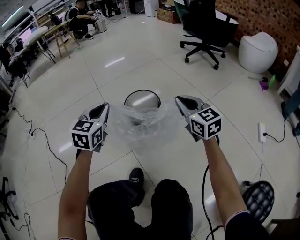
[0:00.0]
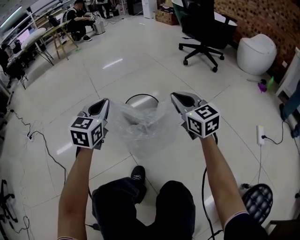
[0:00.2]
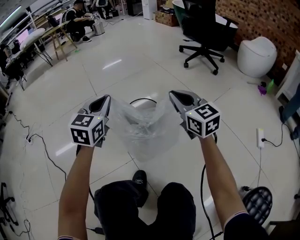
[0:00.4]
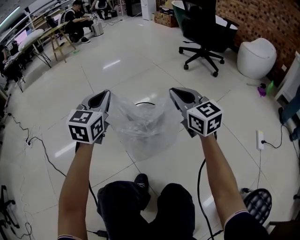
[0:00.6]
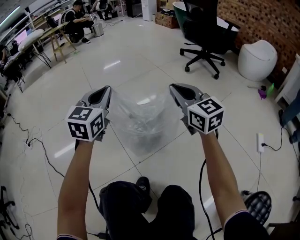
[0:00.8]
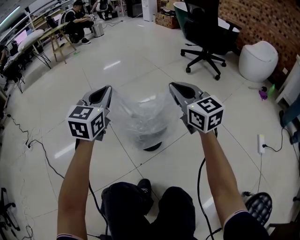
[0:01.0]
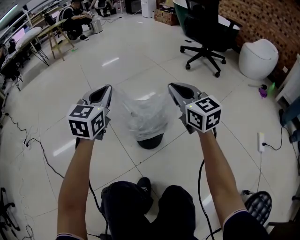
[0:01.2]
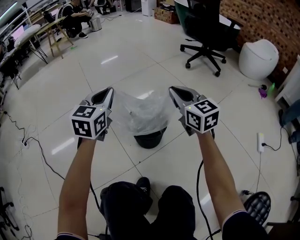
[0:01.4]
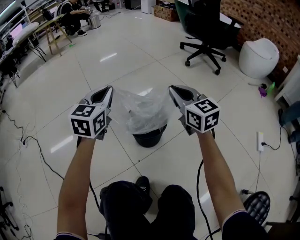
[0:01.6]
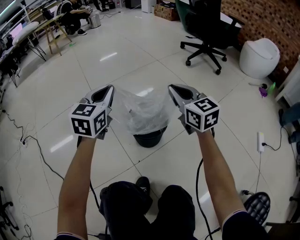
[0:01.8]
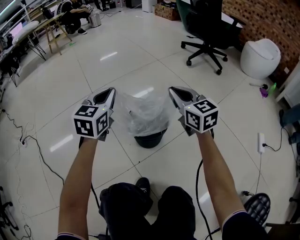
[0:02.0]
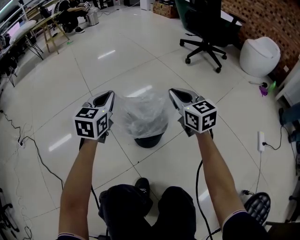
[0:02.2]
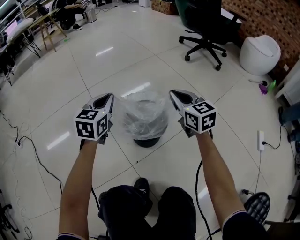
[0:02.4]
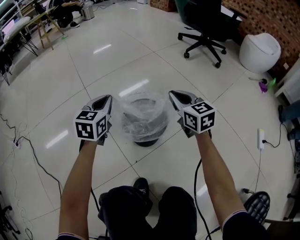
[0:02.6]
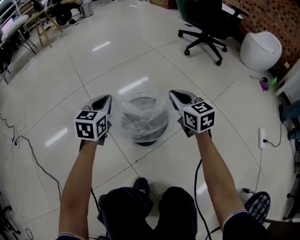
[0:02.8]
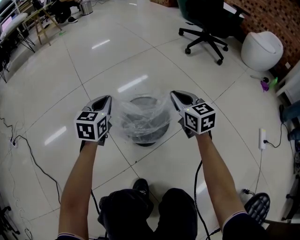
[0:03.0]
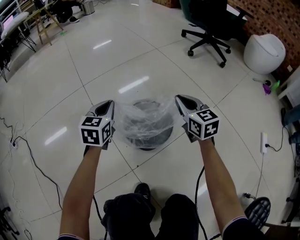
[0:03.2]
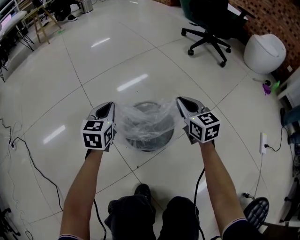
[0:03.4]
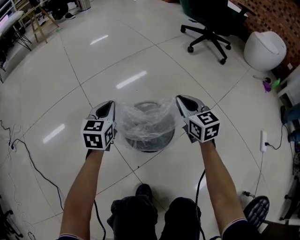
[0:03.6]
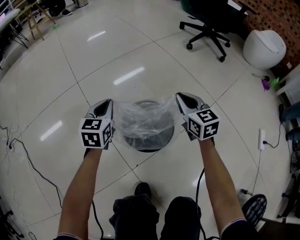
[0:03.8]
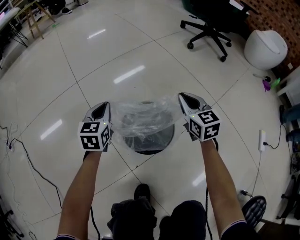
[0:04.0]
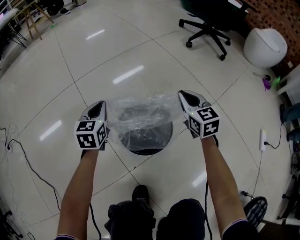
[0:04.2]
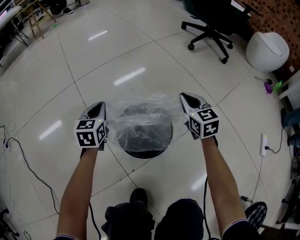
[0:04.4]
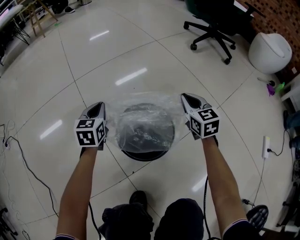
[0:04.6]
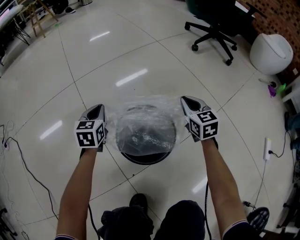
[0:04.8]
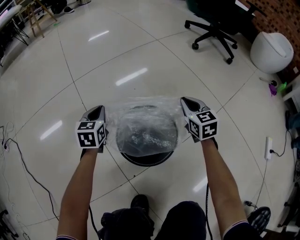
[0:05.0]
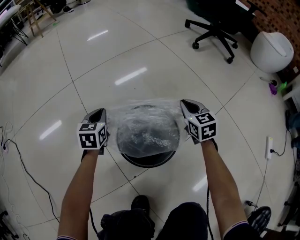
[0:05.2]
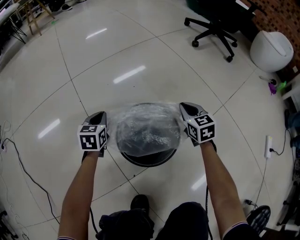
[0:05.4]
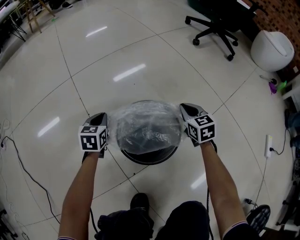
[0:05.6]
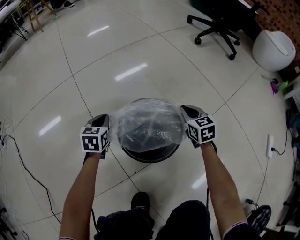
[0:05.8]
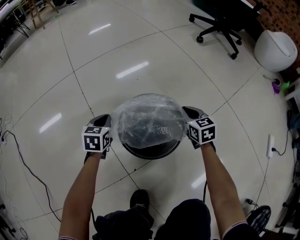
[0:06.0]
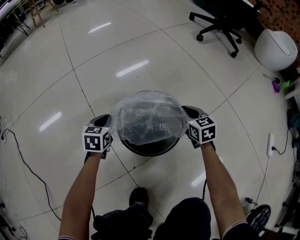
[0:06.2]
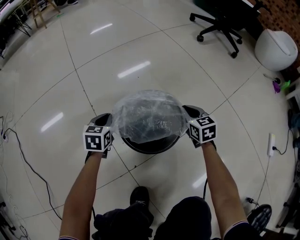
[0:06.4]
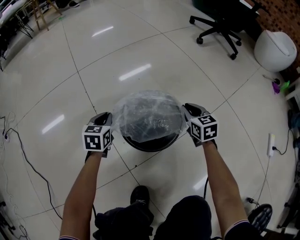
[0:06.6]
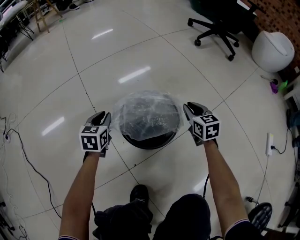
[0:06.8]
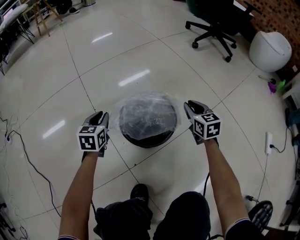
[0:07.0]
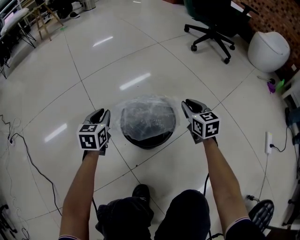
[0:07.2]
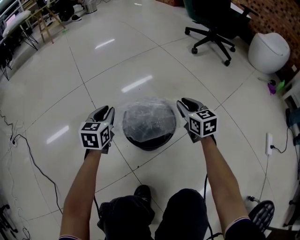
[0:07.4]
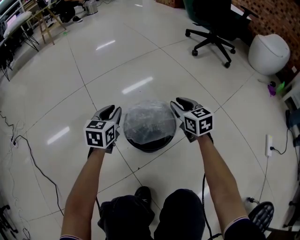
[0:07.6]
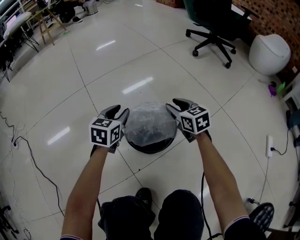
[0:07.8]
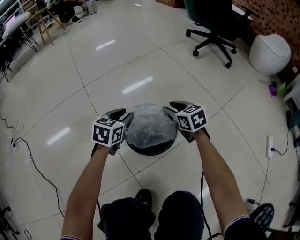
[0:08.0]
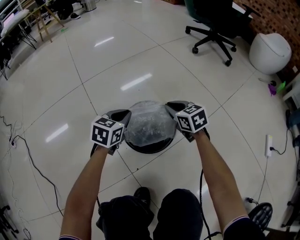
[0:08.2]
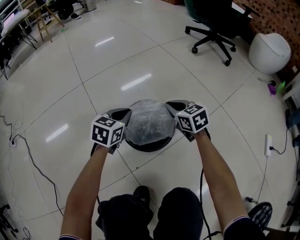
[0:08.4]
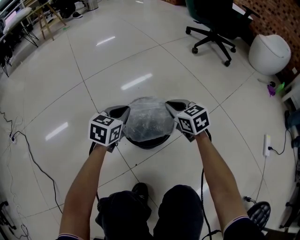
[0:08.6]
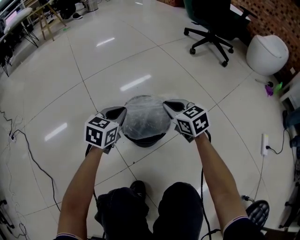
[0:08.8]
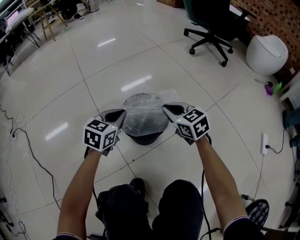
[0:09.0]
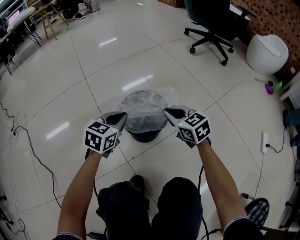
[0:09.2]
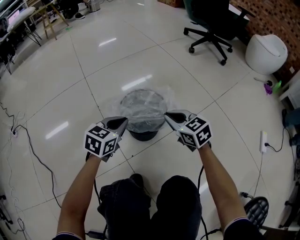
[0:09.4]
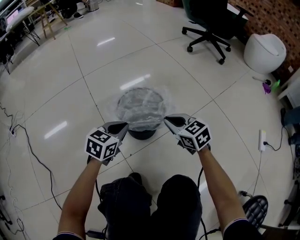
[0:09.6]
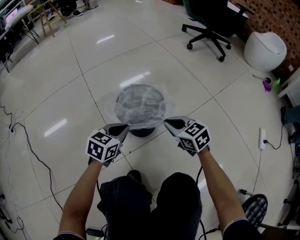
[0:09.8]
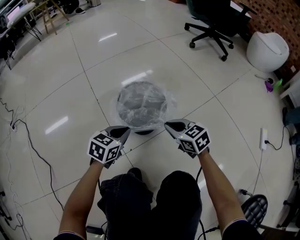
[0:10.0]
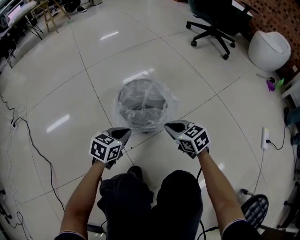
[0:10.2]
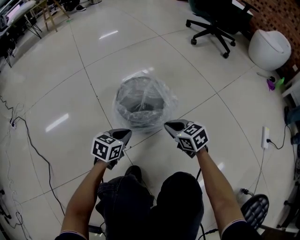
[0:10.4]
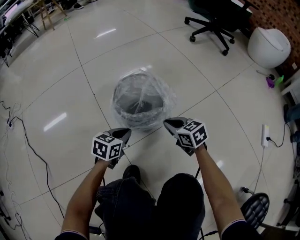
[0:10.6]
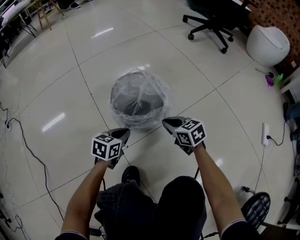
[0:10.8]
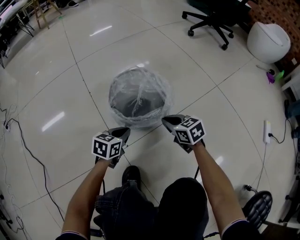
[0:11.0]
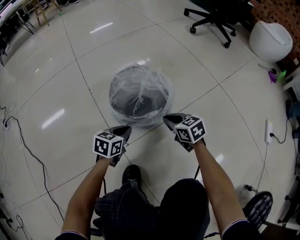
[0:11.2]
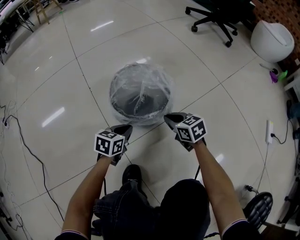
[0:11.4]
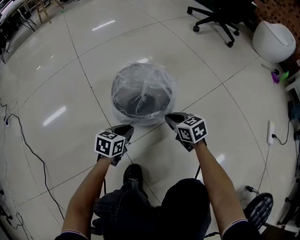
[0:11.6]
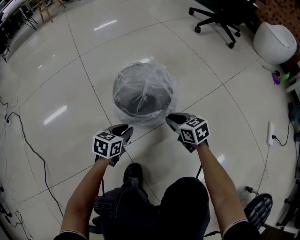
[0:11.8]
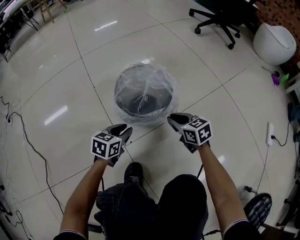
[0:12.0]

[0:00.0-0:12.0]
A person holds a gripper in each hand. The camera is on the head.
0:00.0 to 0:01.6: The right gripper is displaced forward and to the left by some 15 cm, while the left gripper is displaced forward by some 15 cm.
0:01.6 to 0:03.0: The left gripper is displaced downward by some 15 cm. The right gripper is displaced downward and forward by some 15 cm.
0:03.0 to 0:04.4: Both grippers move downward and forward, about 10 cm.
0:04.4 to 0:06.0: Both grippers move downward, about 15 cm.
0:06.0 to 0:07.6: The two grippers go some 15 cm upward. The left gripper opens. Meanwhile the right gripper opens its fingers.
0:07.6 to 0:09.0: The right gripper goes approximately 10 cm backward, and closes up. Meanwhile the left gripper heads backward and to the right, covering roughly 10 cm, and closes its fingers.
0:09.0 to 0:10.4: The left gripper heads downward and backward, covering approximately 15 cm. The right gripper shifts some 15 cm backward and downward.
0:10.4 to 0:12.0: Both grippers travel together downward, roughly 5 cm. The left gripper opens.

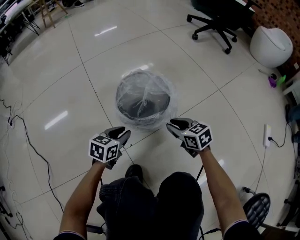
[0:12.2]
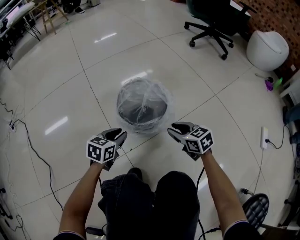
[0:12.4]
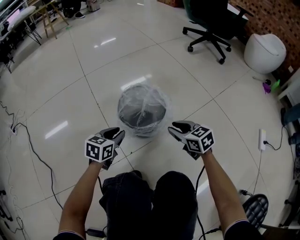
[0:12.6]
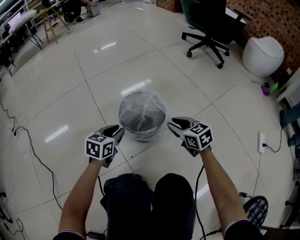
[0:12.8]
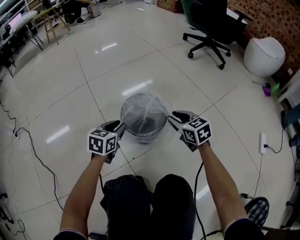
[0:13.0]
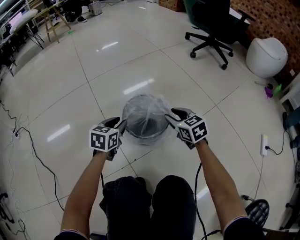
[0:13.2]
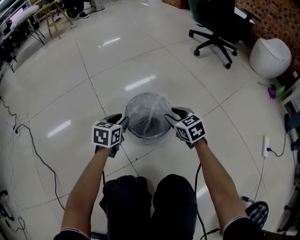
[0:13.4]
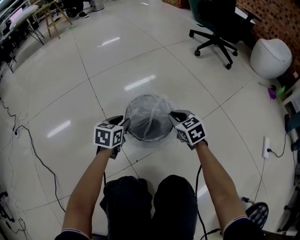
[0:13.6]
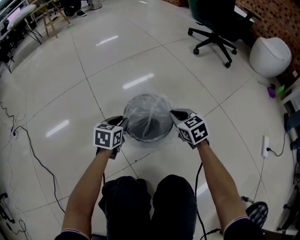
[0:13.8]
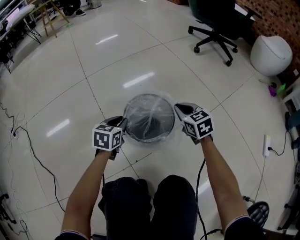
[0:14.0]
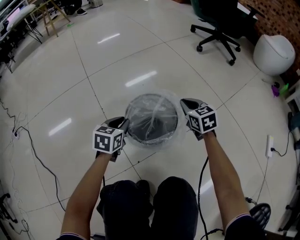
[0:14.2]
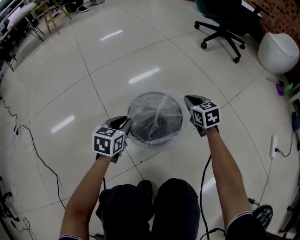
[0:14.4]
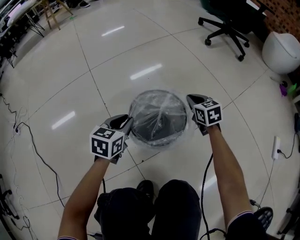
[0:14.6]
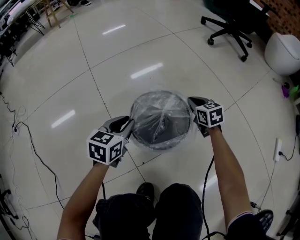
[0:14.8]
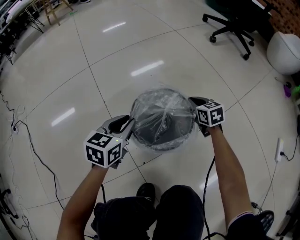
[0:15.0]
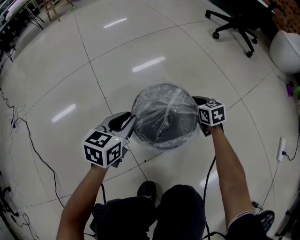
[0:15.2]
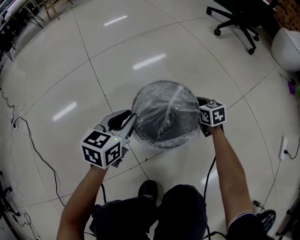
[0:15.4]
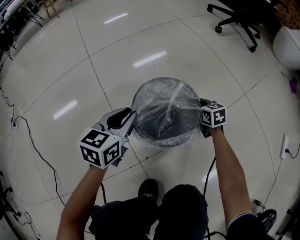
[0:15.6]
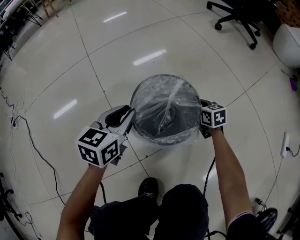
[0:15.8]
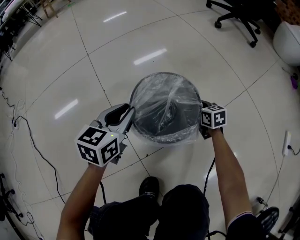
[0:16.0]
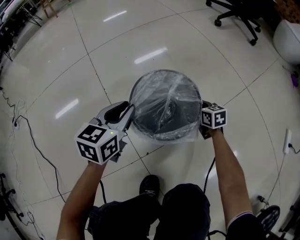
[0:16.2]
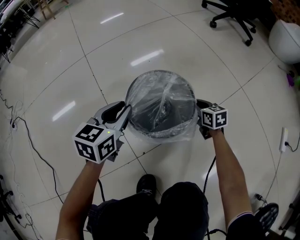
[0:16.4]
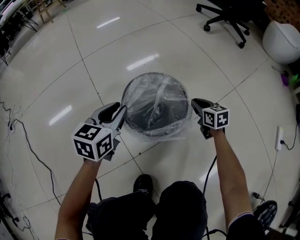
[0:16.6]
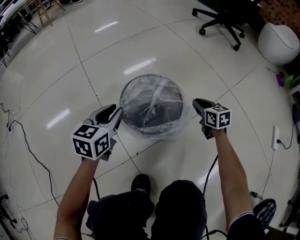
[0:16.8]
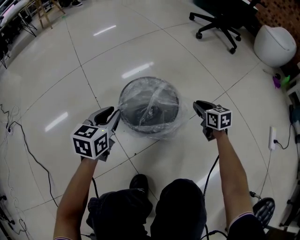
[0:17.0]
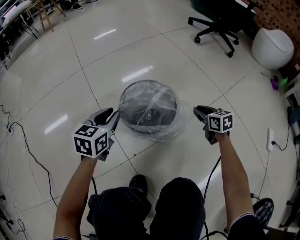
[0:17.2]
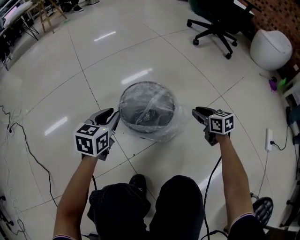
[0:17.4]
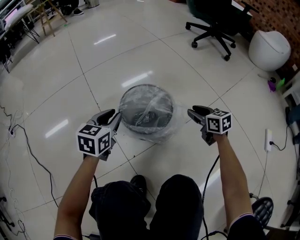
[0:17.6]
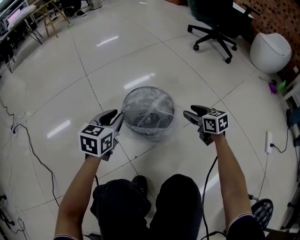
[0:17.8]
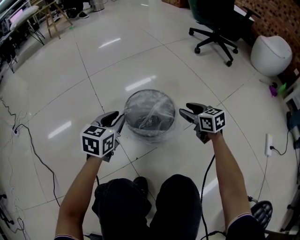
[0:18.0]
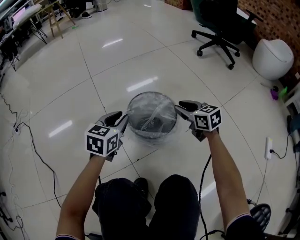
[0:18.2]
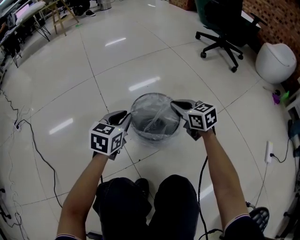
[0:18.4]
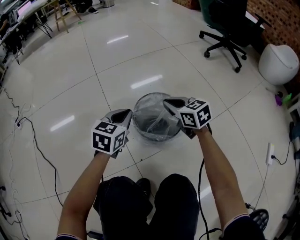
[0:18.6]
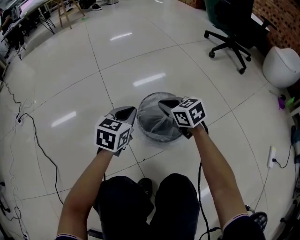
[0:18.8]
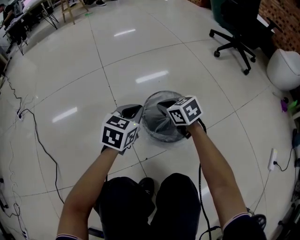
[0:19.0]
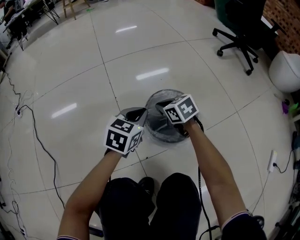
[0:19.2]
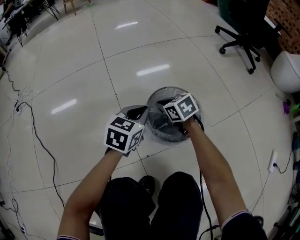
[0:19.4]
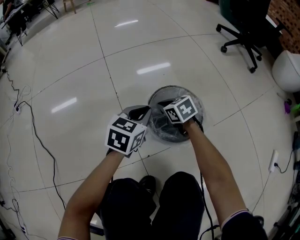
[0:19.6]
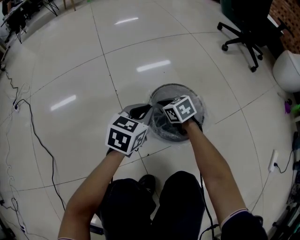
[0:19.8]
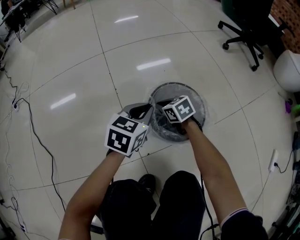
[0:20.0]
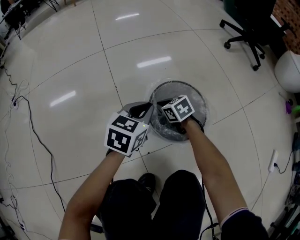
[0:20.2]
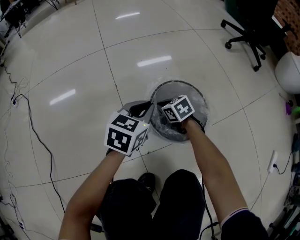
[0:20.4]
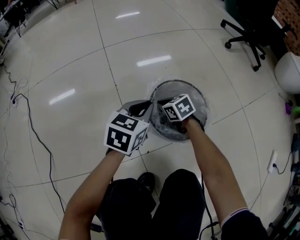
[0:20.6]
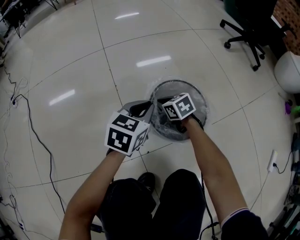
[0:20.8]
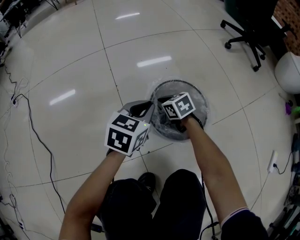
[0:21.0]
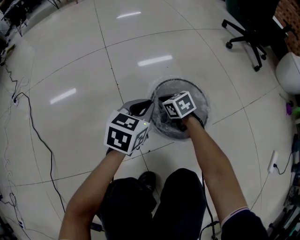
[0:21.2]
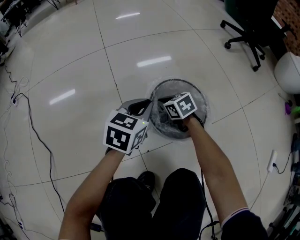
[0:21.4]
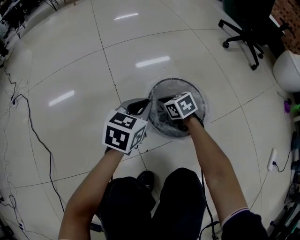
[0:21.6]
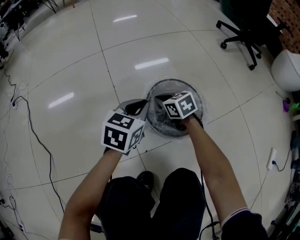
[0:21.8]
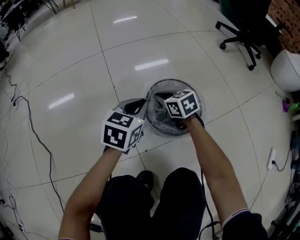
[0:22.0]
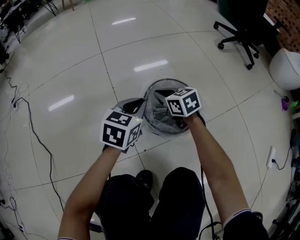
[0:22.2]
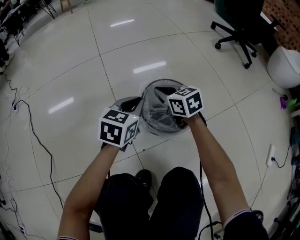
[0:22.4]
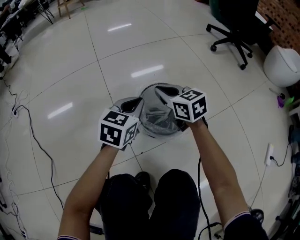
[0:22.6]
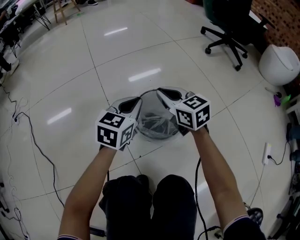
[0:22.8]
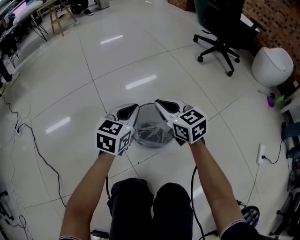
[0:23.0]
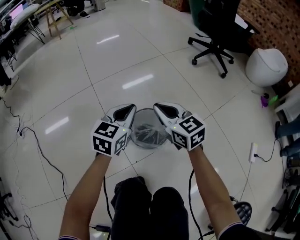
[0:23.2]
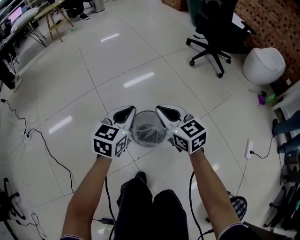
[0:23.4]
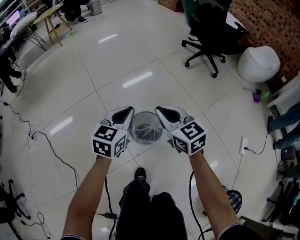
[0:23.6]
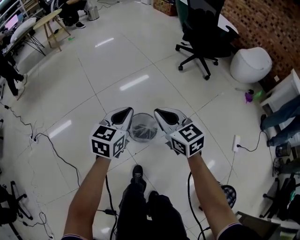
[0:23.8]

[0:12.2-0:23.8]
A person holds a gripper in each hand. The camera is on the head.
0:12.2 to 0:13.6: Both grippers move forward and upward, some 15 cm.
0:13.6 to 0:15.0: The right gripper is displaced forward and downward by about 15 cm.
0:15.0 to 0:16.6: The right gripper shifts approximately 5 cm backward.
0:16.6 to 0:18.0: The right gripper shifts roughly 15 cm upward, and opens up; the left gripper shifts by approximately 5 cm.
0:18.0 to 0:19.4: The right gripper heads to the left and forward, covering some 20 cm, turns by roughly 20 degrees, and closes.
0:19.4 to 0:21.0: The right gripper goes approximately 5 cm downward.
0:21.0 to 0:22.4: The right gripper shifts about 15 cm upward.
0:22.4 to 0:23.8: The two grippers go approximately 50 cm upward.
